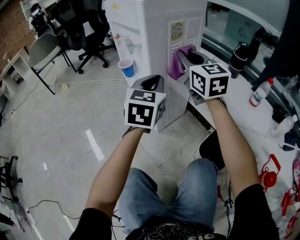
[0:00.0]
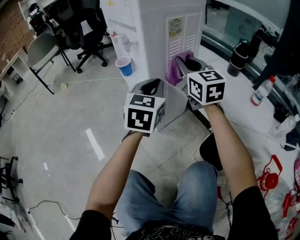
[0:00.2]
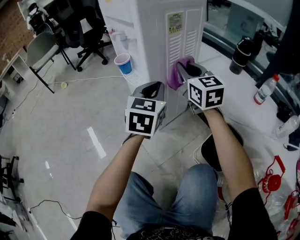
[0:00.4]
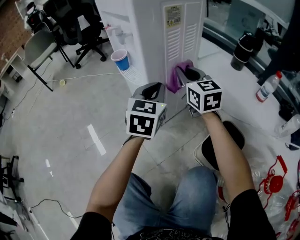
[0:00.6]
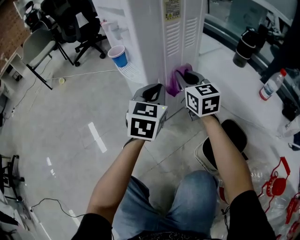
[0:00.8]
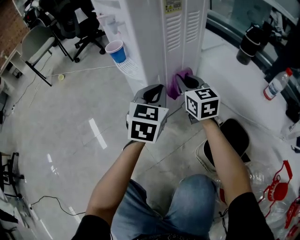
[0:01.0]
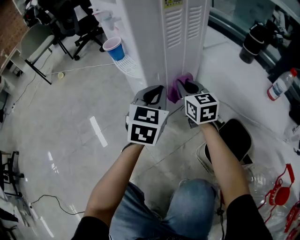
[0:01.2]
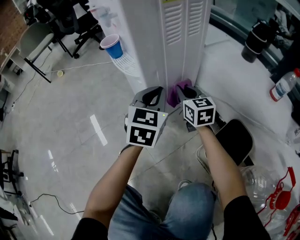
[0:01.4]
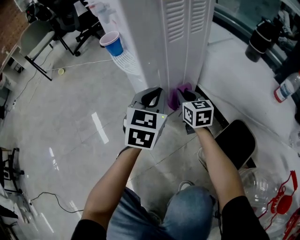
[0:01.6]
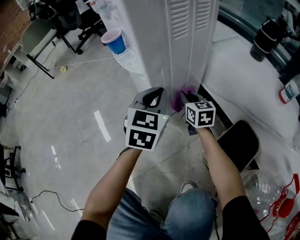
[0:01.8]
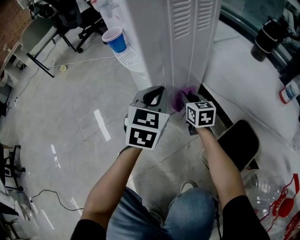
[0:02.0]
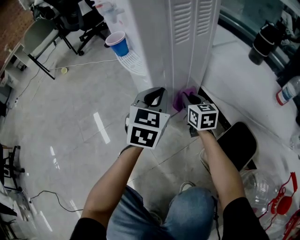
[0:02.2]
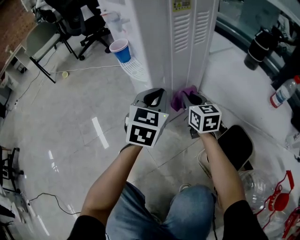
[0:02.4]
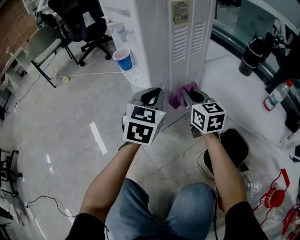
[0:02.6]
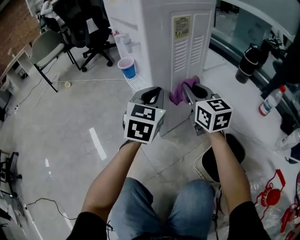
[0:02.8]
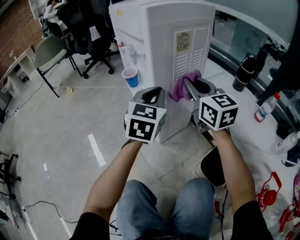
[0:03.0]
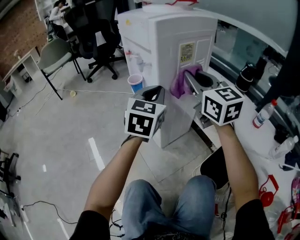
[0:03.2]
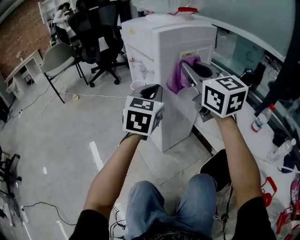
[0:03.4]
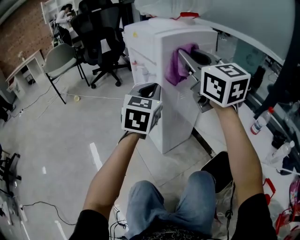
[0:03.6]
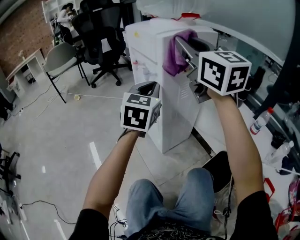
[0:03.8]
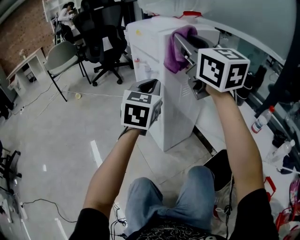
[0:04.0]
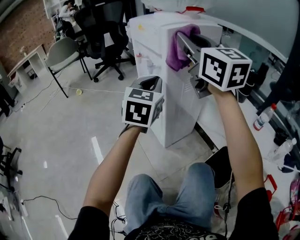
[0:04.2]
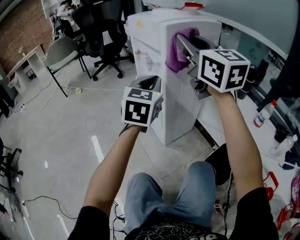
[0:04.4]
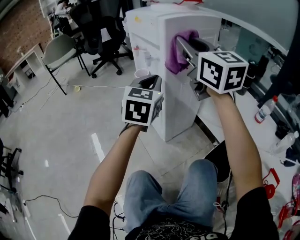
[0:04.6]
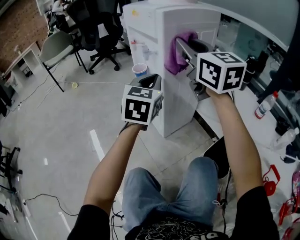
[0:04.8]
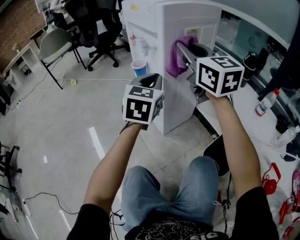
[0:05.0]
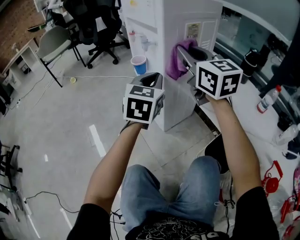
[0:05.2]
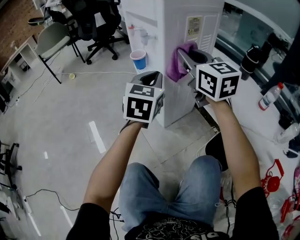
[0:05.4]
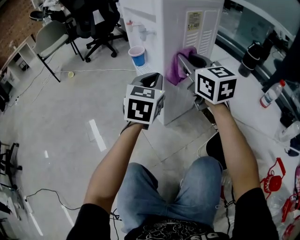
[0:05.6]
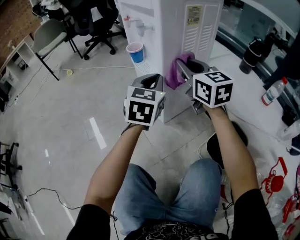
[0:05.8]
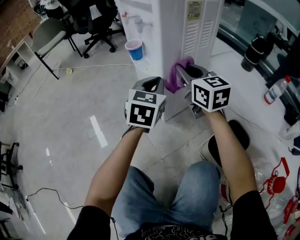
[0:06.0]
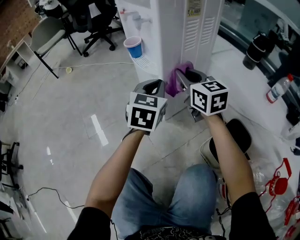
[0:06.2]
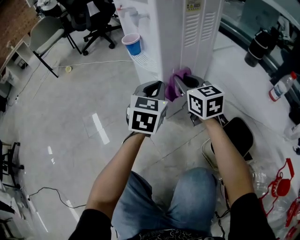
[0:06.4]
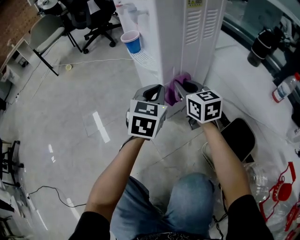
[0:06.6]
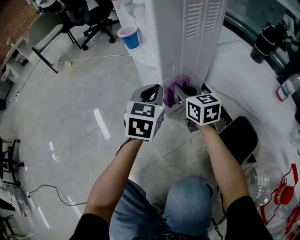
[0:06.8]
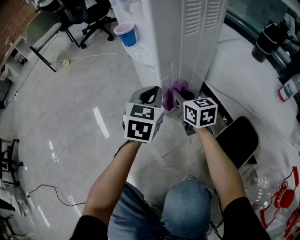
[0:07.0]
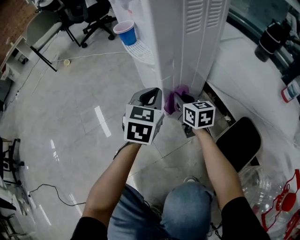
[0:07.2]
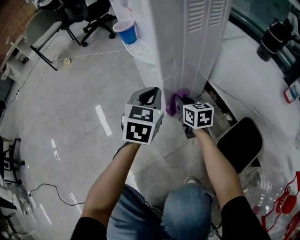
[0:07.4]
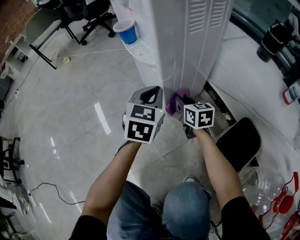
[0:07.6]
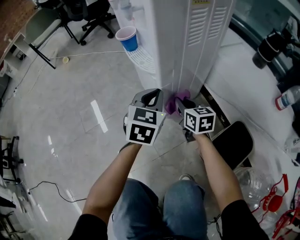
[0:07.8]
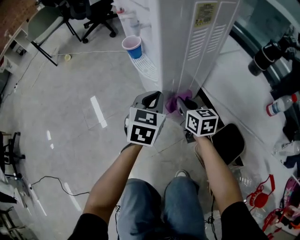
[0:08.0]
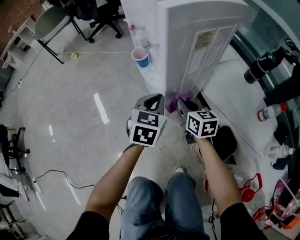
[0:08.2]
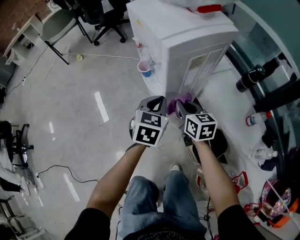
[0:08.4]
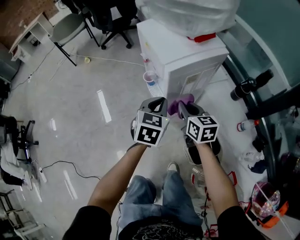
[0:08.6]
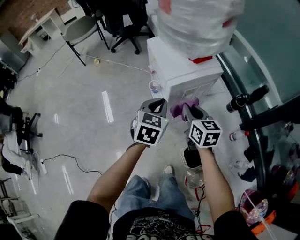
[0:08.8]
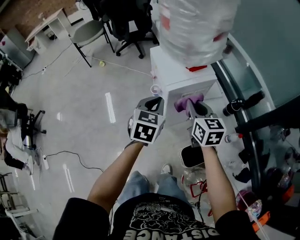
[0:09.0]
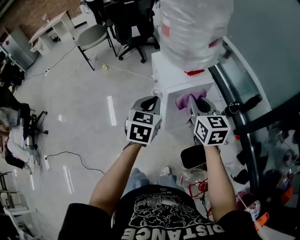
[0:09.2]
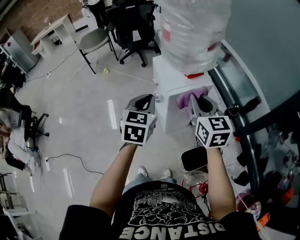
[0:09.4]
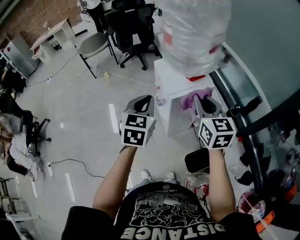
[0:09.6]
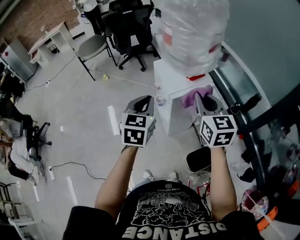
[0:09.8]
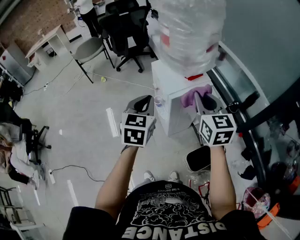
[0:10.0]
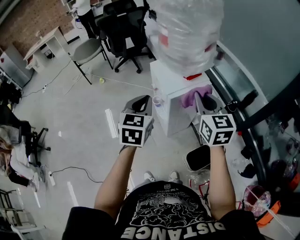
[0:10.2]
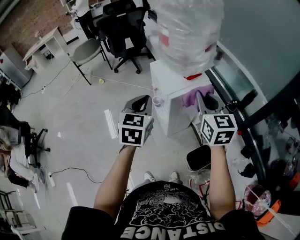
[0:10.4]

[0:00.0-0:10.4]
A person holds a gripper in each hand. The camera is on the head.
0:00.0 to 0:01.4: The left gripper moves downward, roughly 15 cm. The right gripper moves downward, some 30 cm, and swivels some 20 degrees.
0:01.4 to 0:03.0: The left gripper is displaced upward by some 15 cm. Meanwhile the right gripper heads upward, covering roughly 25 cm.
0:03.0 to 0:04.4: The left gripper moves upward and to the left, roughly 10 cm. The right gripper shifts some 20 cm upward.
0:04.4 to 0:06.0: The right gripper is displaced downward by about 30 cm, and turns by some 20 degrees; the left gripper shifts roughly 15 cm downward.
0:06.0 to 0:07.4: The right gripper goes approximately 30 cm downward, and swivels roughly 20 degrees. Meanwhile the left gripper goes approximately 10 cm downward.
0:07.4 to 0:09.0: Both grippers move upward, roughly 60 cm.
0:09.0 to 0:10.4: The left gripper moves upward and to the left, about 10 cm. The right gripper moves upward, about 15 cm.

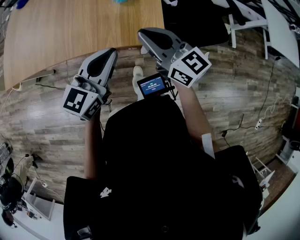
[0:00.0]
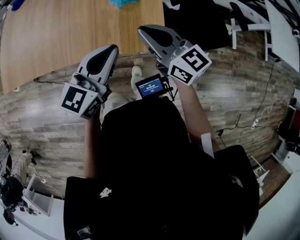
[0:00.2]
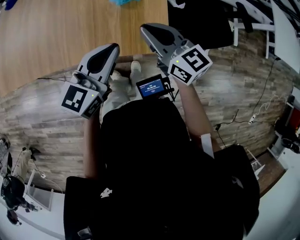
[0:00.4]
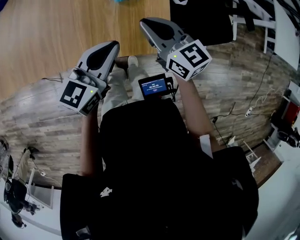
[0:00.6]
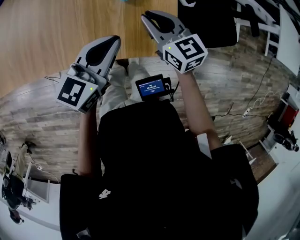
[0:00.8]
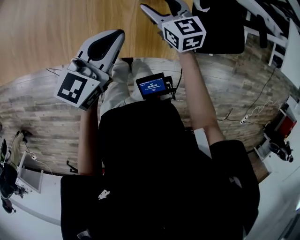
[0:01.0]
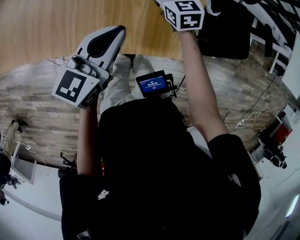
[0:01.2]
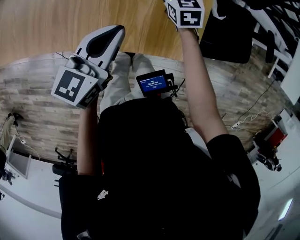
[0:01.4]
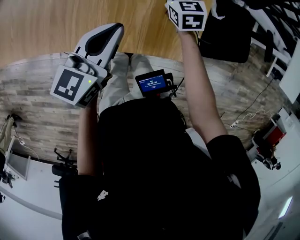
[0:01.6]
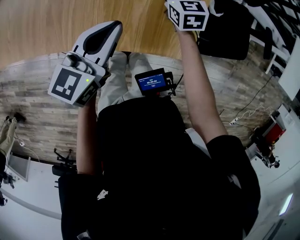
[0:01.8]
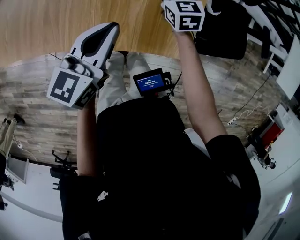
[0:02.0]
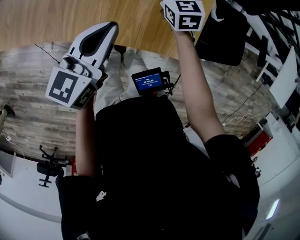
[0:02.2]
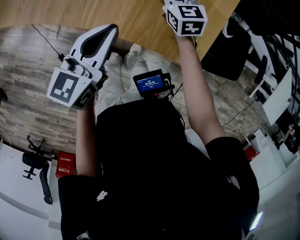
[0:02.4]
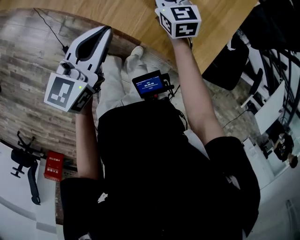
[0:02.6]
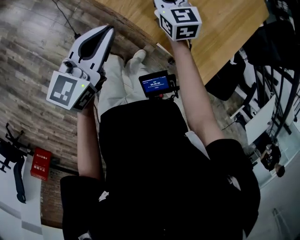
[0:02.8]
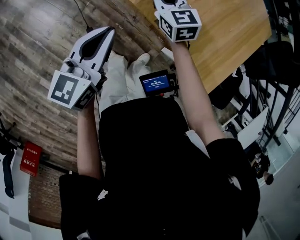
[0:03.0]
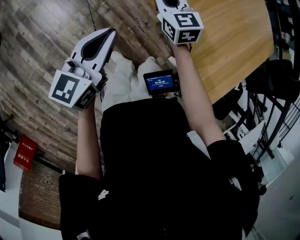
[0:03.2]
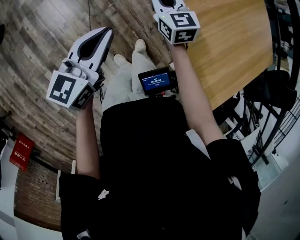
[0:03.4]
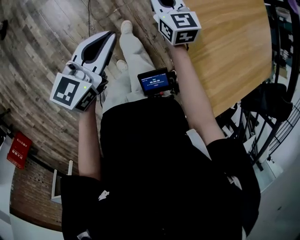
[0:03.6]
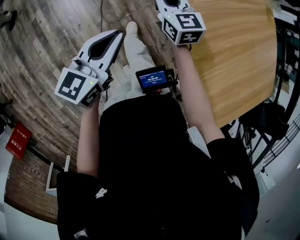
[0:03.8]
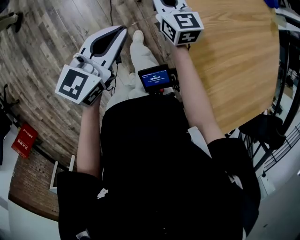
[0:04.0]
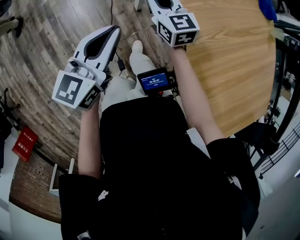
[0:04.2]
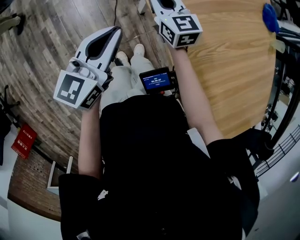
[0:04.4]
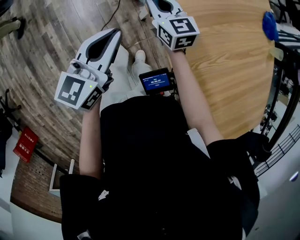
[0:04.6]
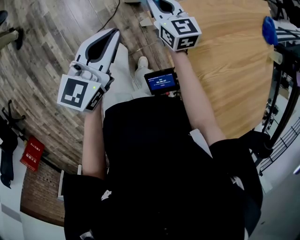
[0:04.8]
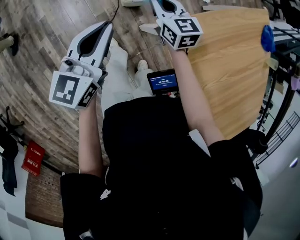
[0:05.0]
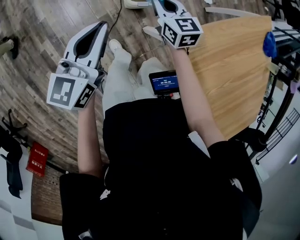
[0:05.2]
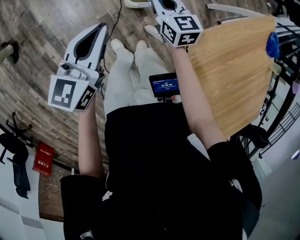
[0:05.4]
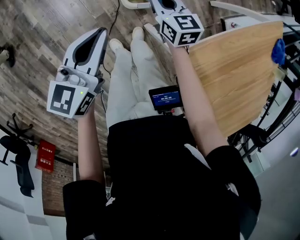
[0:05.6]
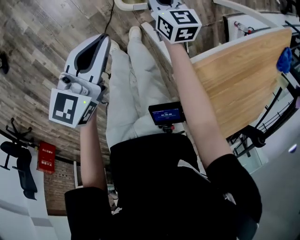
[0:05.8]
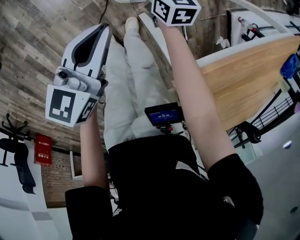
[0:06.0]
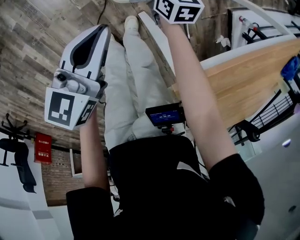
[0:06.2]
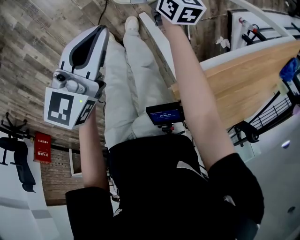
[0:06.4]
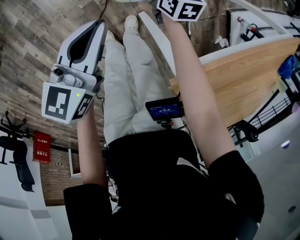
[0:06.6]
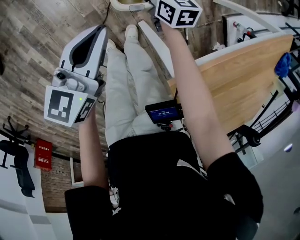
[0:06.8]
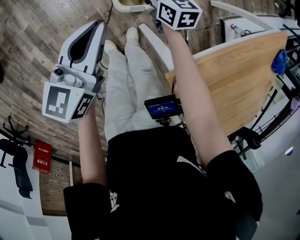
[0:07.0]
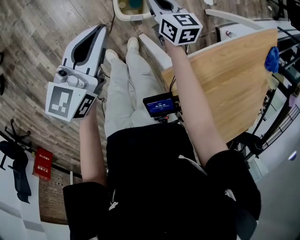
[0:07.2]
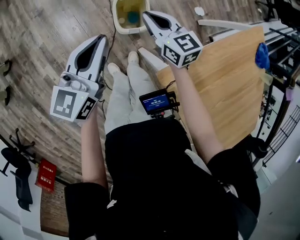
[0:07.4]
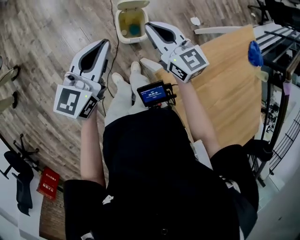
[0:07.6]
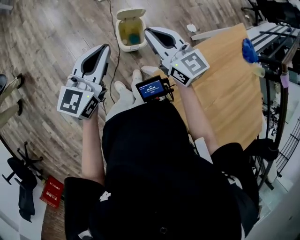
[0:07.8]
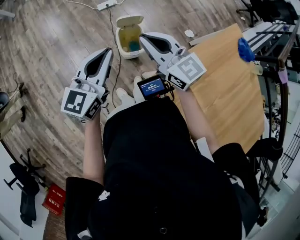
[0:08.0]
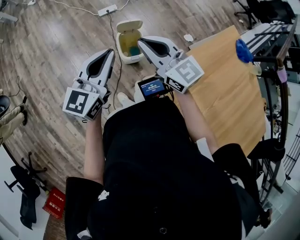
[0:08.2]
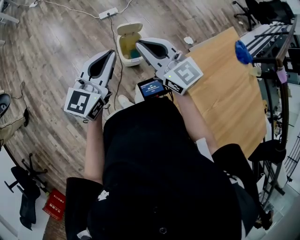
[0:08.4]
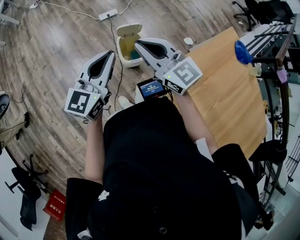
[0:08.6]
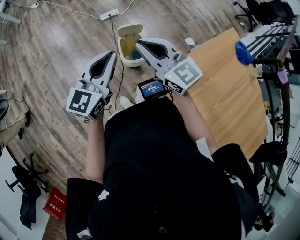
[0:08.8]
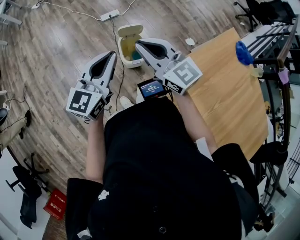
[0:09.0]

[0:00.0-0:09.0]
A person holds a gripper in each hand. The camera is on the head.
0:00.0 to 0:01.6: The left gripper moves forward, downward and to the left, roughly 20 cm. Meanwhile the right gripper heads forward and downward, covering about 40 cm, tips its fingers downward by some 30 degrees, and opens, then closes once more.
0:01.6 to 0:03.0: The right gripper ends up approximately 50 cm from where it was, and swivels about 40 degrees, while the left gripper changes place by some 35 cm, and swivels roughly 40 degrees.
0:03.0 to 0:04.4: The two grippers travel together, forward and to the left, some 50 cm. The left gripper swivels roughly 20 degrees. Meanwhile the right gripper swivels roughly 20 degrees.
0:04.4 to 0:06.0: The grippers both shift forward and downward by approximately 50 cm. The right gripper turns by roughly 30 degrees.
0:06.0 to 0:07.6: The grippers both shift upward by roughly 35 cm. The right gripper turns by some 30 degrees, and opens and closes again; the left gripper rotates some 20 degrees.
0:07.6 to 0:09.0: The right gripper goes roughly 15 cm upward and backward. The left gripper travels upward by about 10 cm.

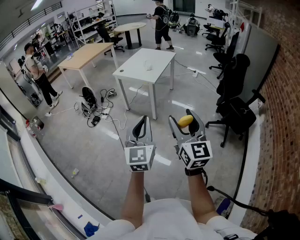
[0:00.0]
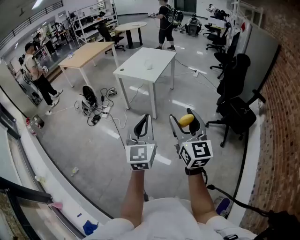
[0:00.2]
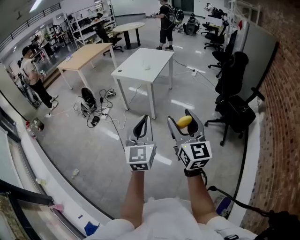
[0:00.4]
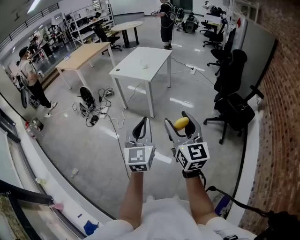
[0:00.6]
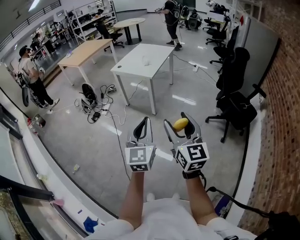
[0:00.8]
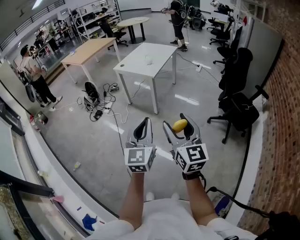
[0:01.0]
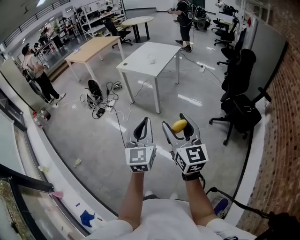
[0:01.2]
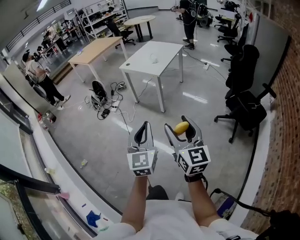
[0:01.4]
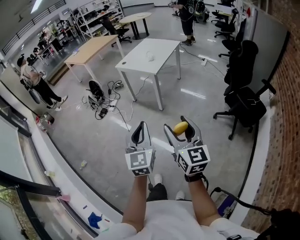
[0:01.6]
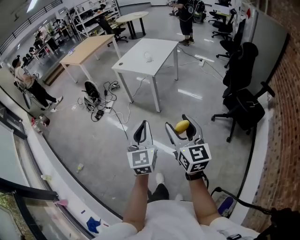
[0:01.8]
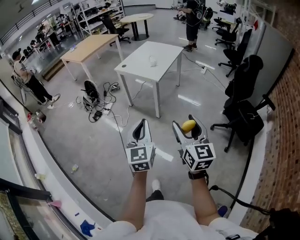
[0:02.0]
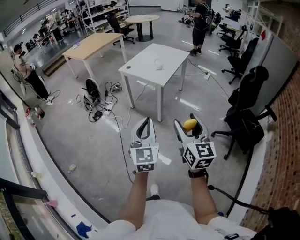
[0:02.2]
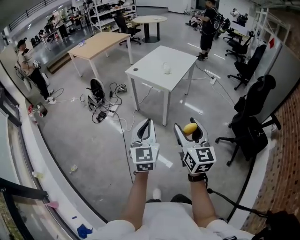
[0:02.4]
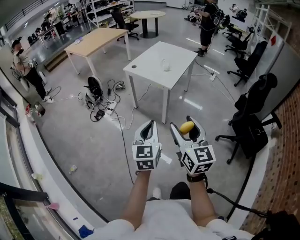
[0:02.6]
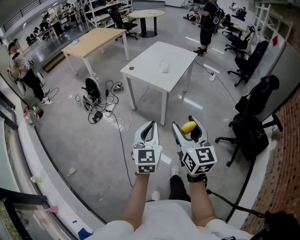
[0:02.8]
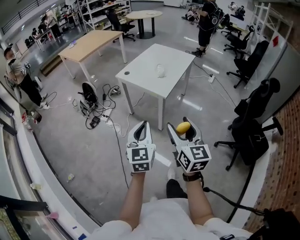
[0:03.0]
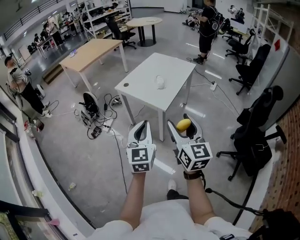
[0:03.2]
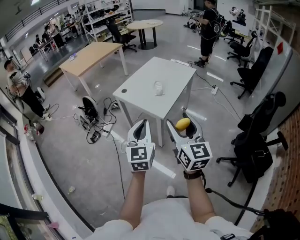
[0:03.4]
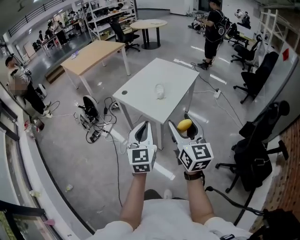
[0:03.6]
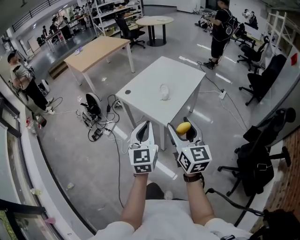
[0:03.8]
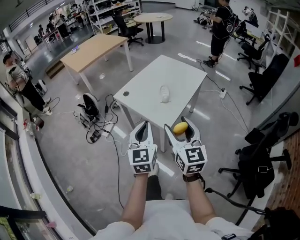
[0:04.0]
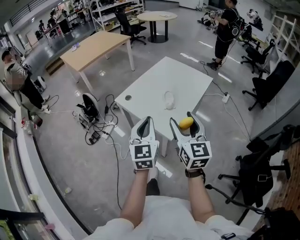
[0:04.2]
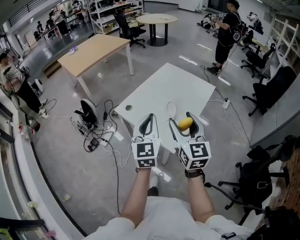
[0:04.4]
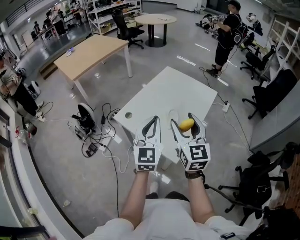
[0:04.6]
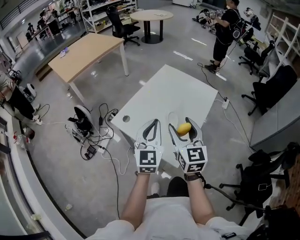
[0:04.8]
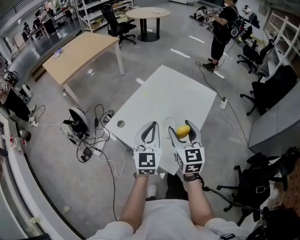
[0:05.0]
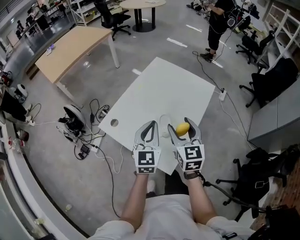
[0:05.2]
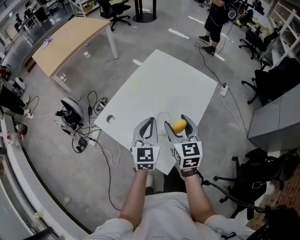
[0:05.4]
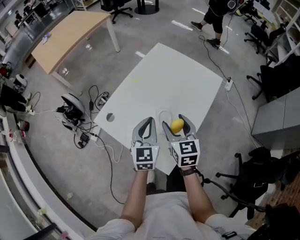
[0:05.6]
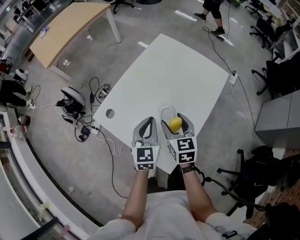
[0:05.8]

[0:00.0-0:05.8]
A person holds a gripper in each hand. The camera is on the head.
0:00.0 to 0:01.4: The left gripper moves roughly 5 cm, while the right gripper moves approximately 5 cm.
0:01.4 to 0:02.8: Both grippers move forward, some 30 cm.
0:02.8 to 0:04.4: The two grippers travel together, forward, some 50 cm.
0:04.4 to 0:05.8: The left gripper travels forward and downward by about 30 cm, while the right gripper travels downward and forward by roughly 35 cm, and changes its angle by approximately 30 degrees.
